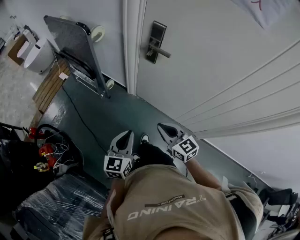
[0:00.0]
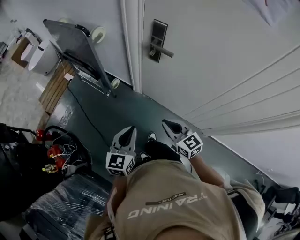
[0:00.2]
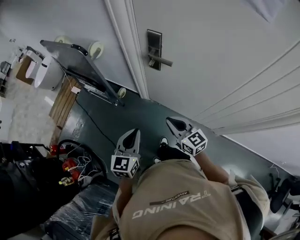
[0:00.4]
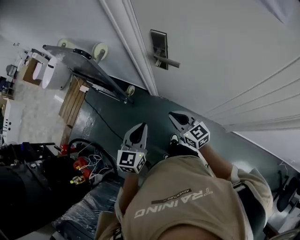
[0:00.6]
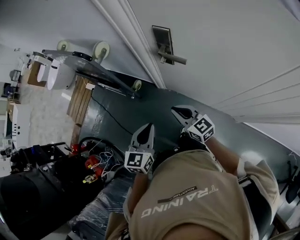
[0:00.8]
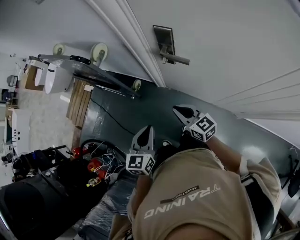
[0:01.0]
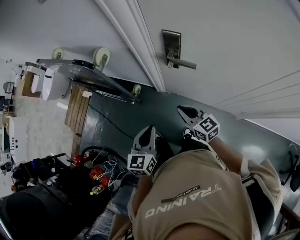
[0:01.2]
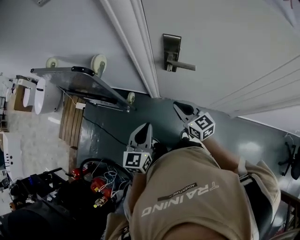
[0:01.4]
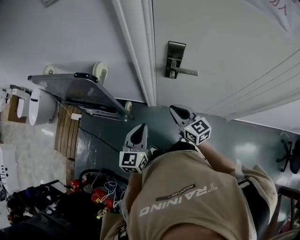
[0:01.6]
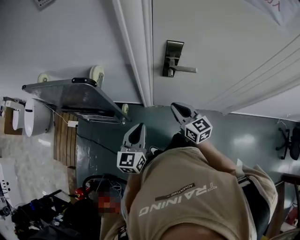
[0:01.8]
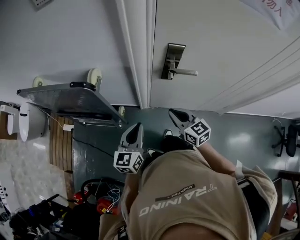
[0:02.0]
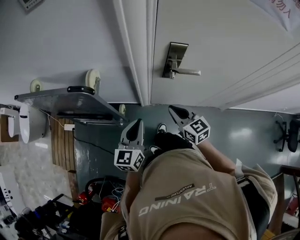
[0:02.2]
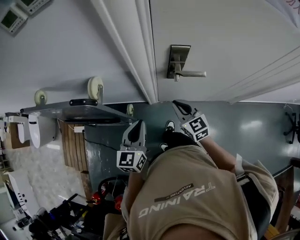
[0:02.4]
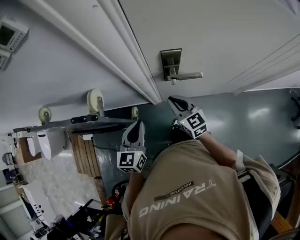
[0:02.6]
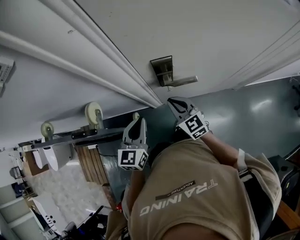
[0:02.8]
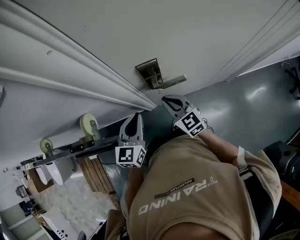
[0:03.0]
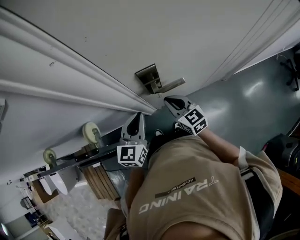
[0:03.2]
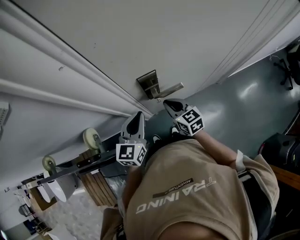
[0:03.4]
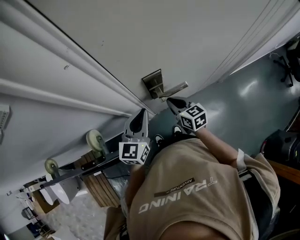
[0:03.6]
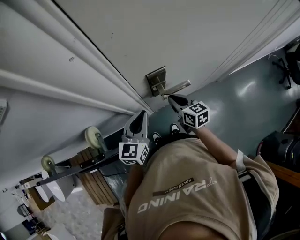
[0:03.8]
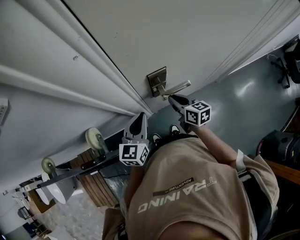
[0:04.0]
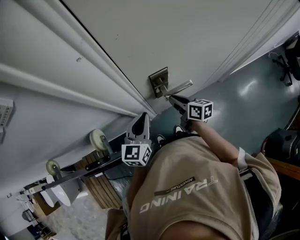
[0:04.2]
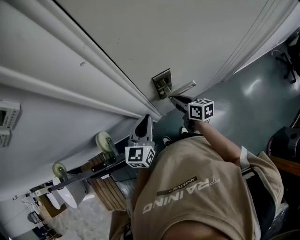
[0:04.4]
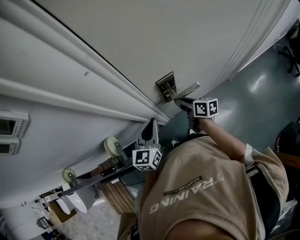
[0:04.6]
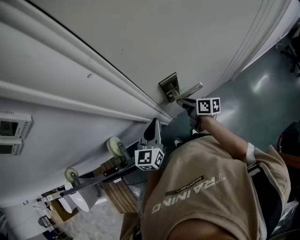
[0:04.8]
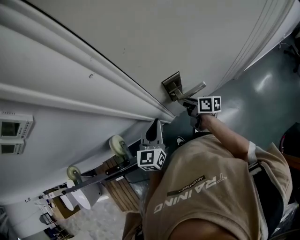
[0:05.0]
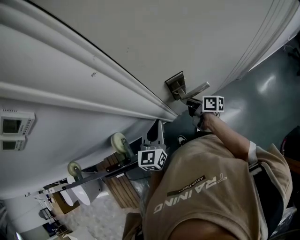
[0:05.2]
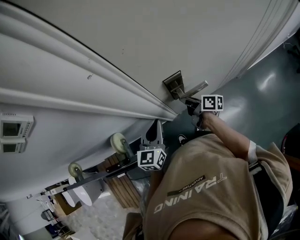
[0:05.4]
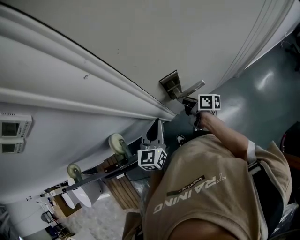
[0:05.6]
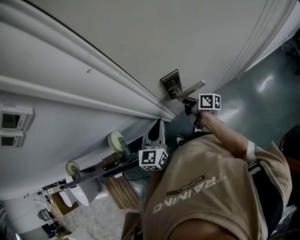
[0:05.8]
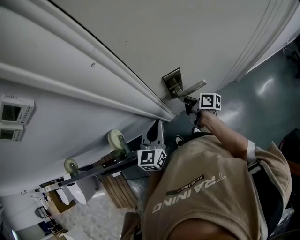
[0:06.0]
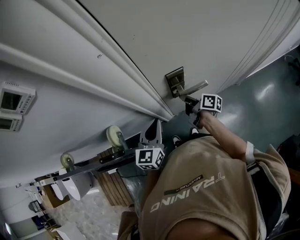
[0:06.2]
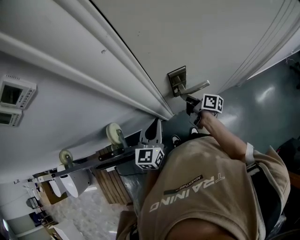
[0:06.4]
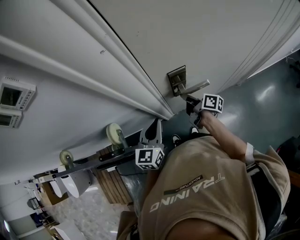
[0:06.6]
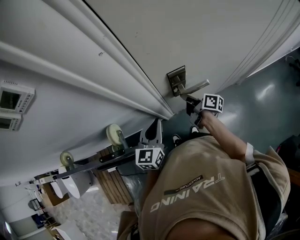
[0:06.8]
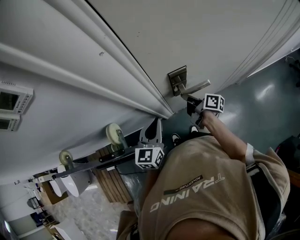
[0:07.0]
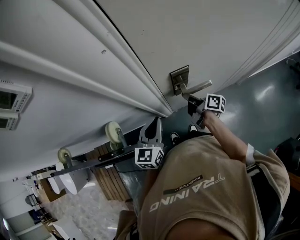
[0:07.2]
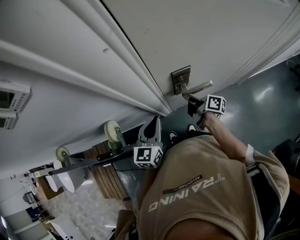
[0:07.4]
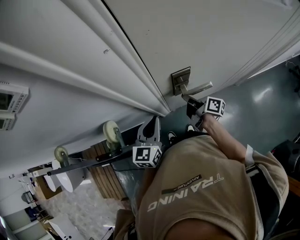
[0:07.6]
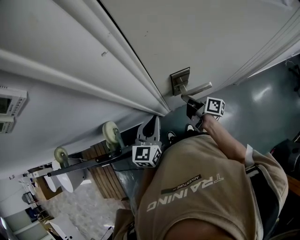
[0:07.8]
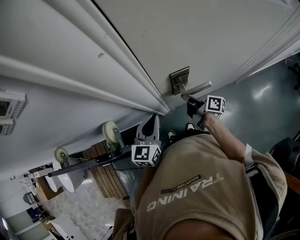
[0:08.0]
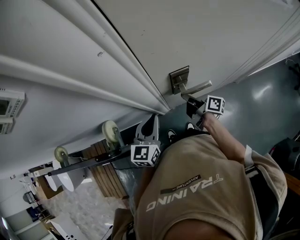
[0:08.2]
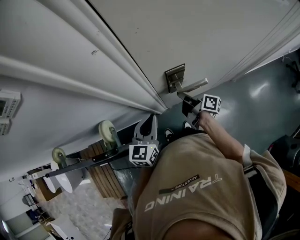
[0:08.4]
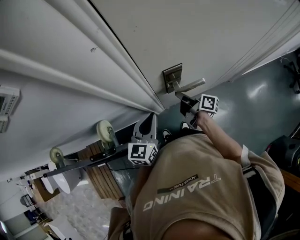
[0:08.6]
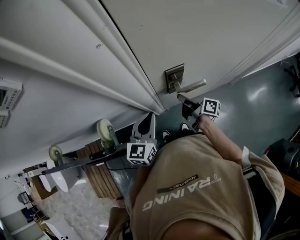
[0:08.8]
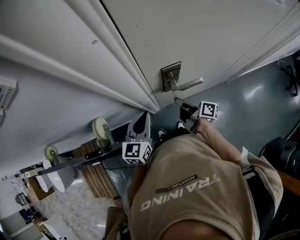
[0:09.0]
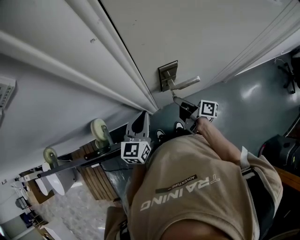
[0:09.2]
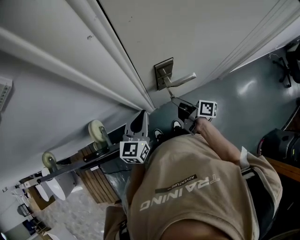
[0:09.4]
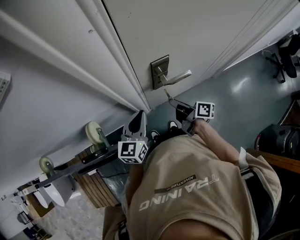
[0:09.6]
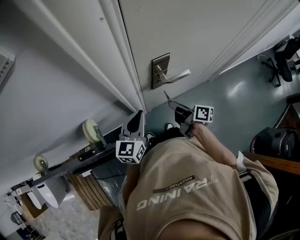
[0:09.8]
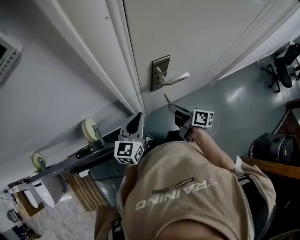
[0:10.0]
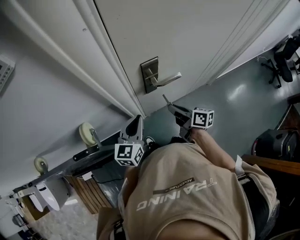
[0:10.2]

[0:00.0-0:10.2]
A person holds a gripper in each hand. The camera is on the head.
0:00.0 to 0:01.4: The two grippers go approximately 25 cm forward.
0:01.4 to 0:03.0: The left gripper changes place by some 25 cm, and turns by about 30 degrees. The right gripper shifts by some 15 cm, and rotates approximately 30 degrees.
0:03.0 to 0:04.4: The right gripper heads forward, covering approximately 5 cm, and twists roughly 50 degrees clockwise, seen from behind.
0:04.4 to 0:05.8: The right gripper changes its angle by some 30 degrees.
0:05.8 to 0:08.8: The grippers move only a little.
0:08.8 to 0:10.2: The right gripper goes roughly 10 cm backward, and changes its angle by roughly 20 degrees.

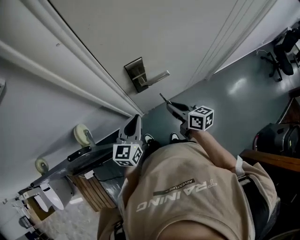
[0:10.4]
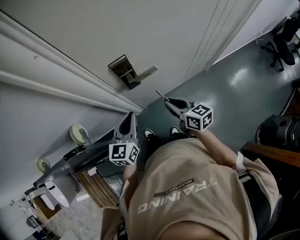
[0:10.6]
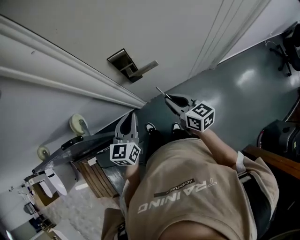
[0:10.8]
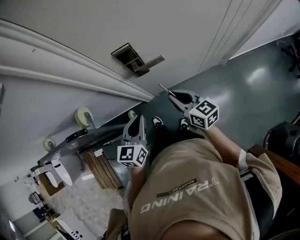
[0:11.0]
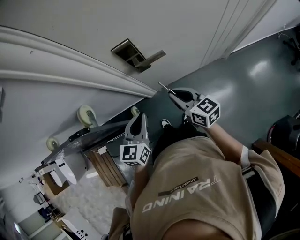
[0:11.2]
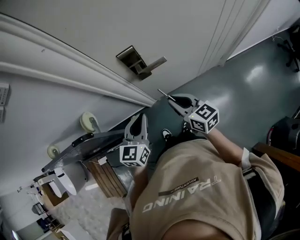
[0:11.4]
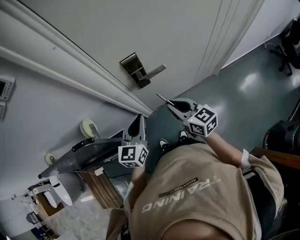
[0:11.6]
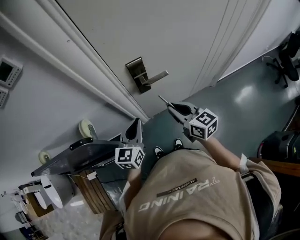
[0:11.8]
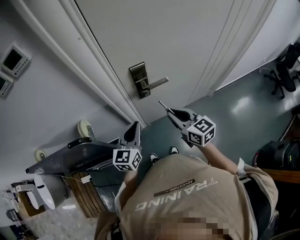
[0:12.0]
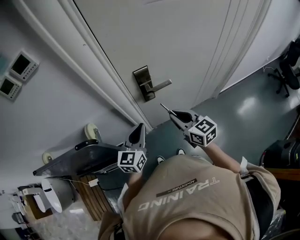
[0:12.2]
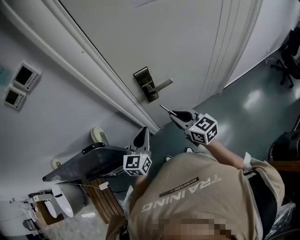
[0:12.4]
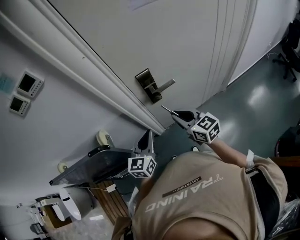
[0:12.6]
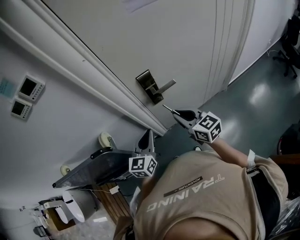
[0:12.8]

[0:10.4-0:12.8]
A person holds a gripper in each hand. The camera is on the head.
0:10.4 to 0:11.6: The left gripper changes place by some 5 cm; the right gripper moves upward, roughly 5 cm, and changes its angle by some 20 degrees.
0:11.6 to 0:12.8: The grippers stay close to where they were, moving slightly.

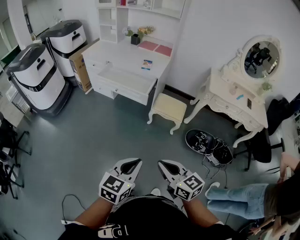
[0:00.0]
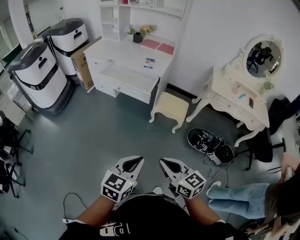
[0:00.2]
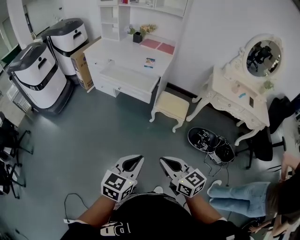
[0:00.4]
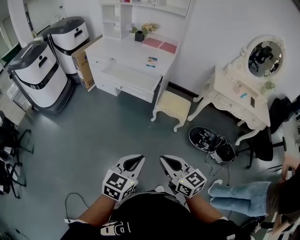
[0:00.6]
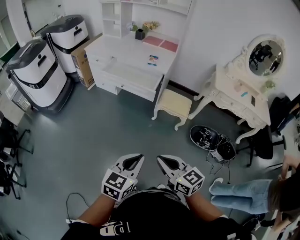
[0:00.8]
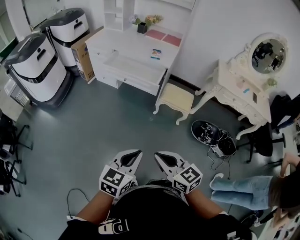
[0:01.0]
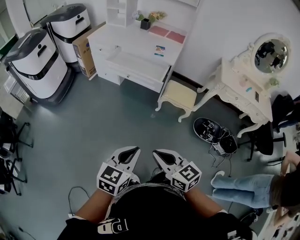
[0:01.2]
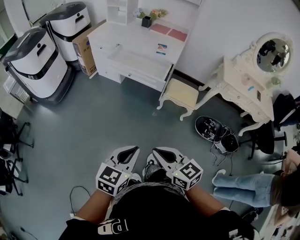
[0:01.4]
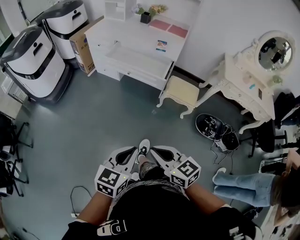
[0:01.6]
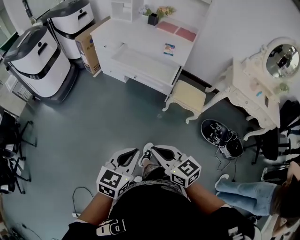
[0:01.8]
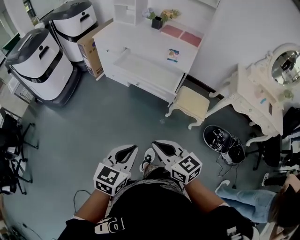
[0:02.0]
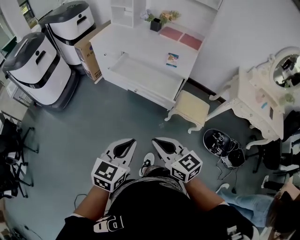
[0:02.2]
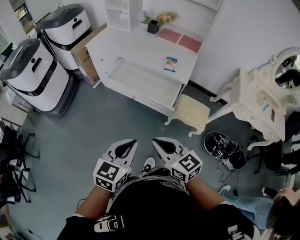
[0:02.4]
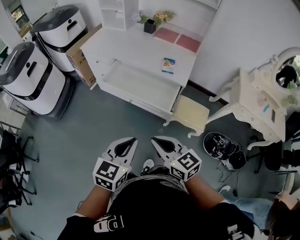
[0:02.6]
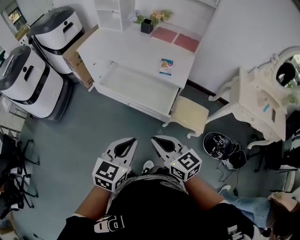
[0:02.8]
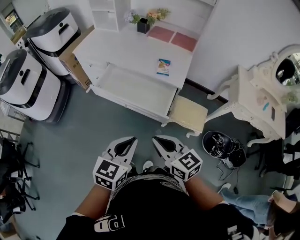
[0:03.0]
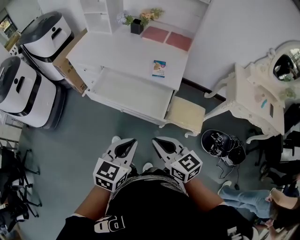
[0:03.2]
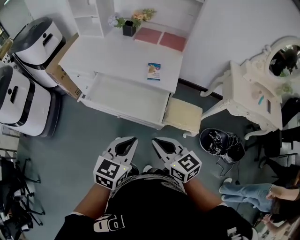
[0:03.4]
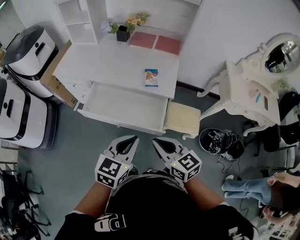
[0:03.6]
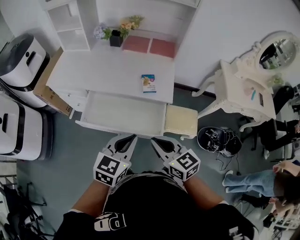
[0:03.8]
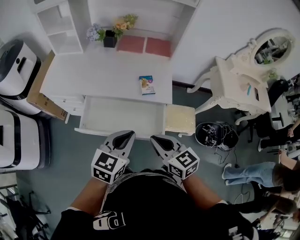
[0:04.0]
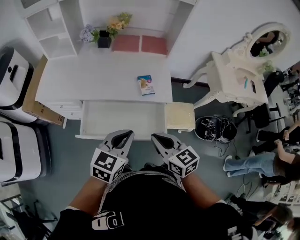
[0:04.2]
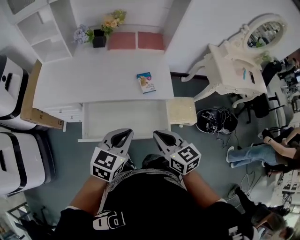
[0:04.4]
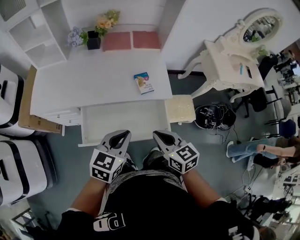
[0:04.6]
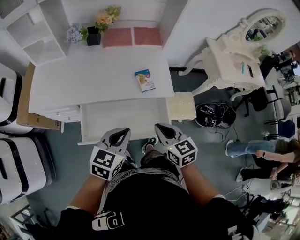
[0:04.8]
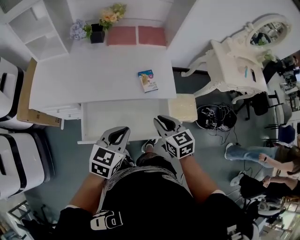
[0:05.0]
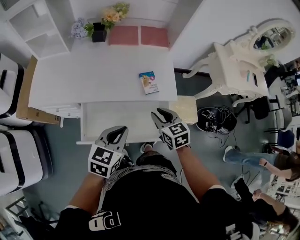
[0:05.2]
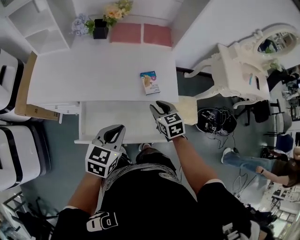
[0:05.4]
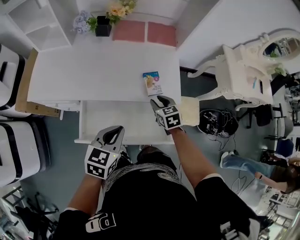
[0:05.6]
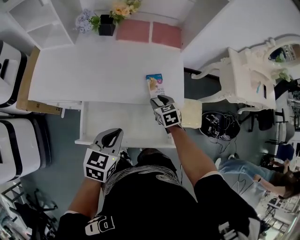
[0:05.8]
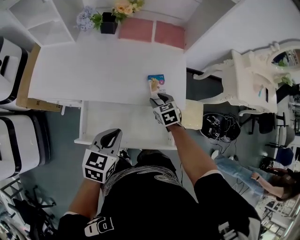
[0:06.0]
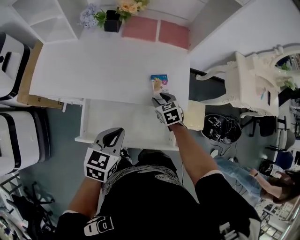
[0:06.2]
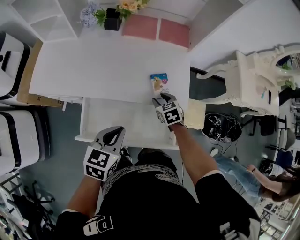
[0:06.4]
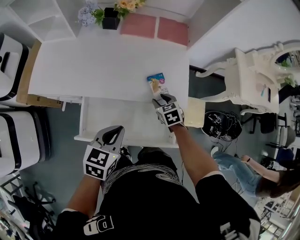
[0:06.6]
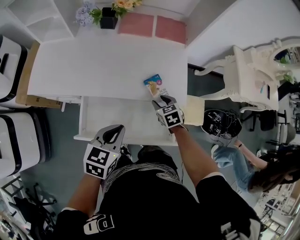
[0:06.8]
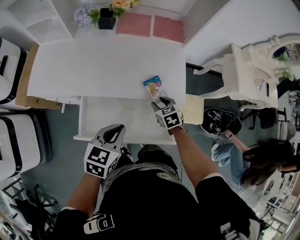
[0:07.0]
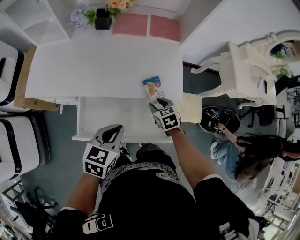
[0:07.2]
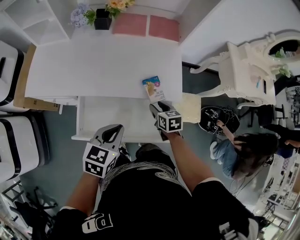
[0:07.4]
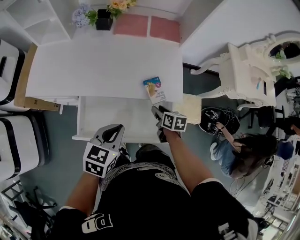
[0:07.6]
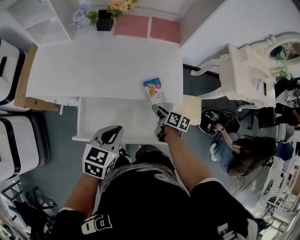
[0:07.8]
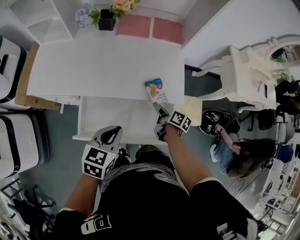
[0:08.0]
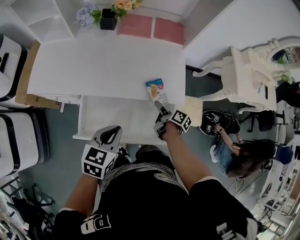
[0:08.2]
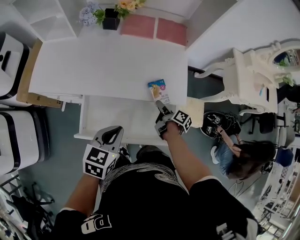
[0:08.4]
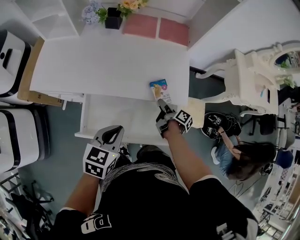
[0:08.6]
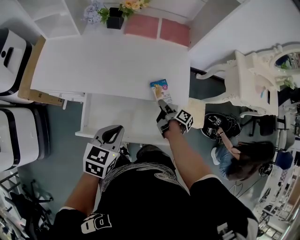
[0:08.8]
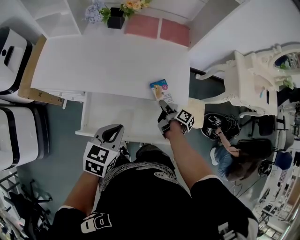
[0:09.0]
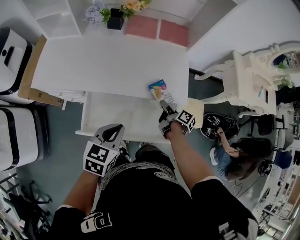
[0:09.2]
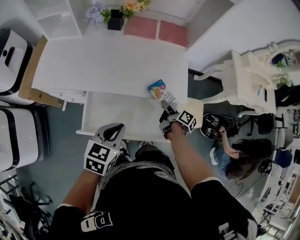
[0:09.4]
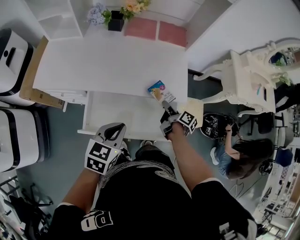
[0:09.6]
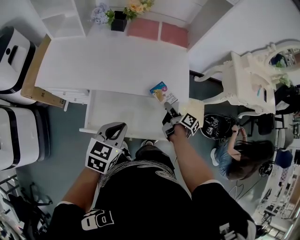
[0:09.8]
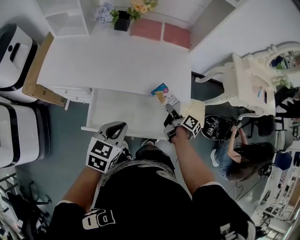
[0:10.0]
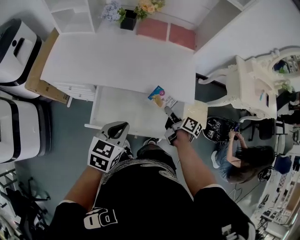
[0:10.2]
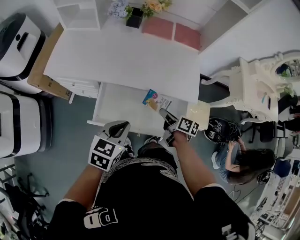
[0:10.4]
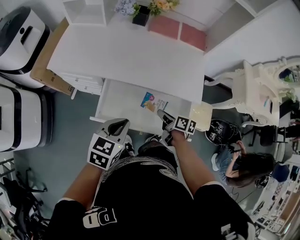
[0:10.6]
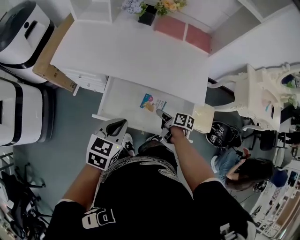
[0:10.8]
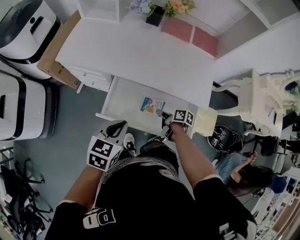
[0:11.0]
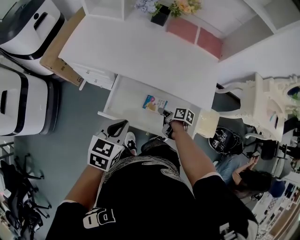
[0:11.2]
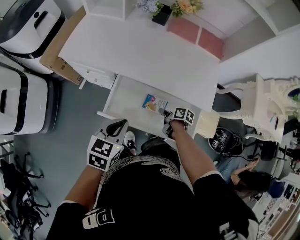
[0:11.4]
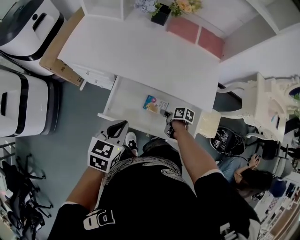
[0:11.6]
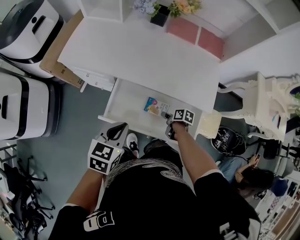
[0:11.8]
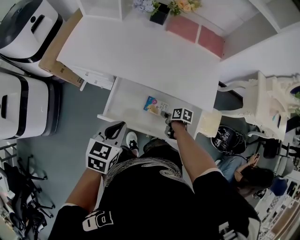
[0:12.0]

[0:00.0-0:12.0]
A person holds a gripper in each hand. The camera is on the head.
0:00.0 to 0:01.6: Both grippers travel together to the left and forward, approximately 15 cm.
0:01.6 to 0:03.0: Both grippers travel together forward, approximately 35 cm.
0:03.0 to 0:04.4: The right gripper moves approximately 25 cm, and changes its angle by approximately 30 degrees, while the left gripper moves about 30 cm, and changes its angle by some 30 degrees.
0:04.4 to 0:06.0: The right gripper travels forward and downward by about 30 cm, turns by about 30 degrees, and opens. Meanwhile the left gripper shifts some 10 cm forward, downward and to the left.
0:06.0 to 0:07.6: The right gripper heads backward, covering some 10 cm, and rotates around the line of its fingers by some 40 degrees, clockwise from behind.
0:07.6 to 0:09.0: The right gripper twists roughly 40 degrees clockwise, seen from behind.
0:09.0 to 0:10.4: The left gripper ends up some 5 cm from where it was. Meanwhile the right gripper heads backward and to the left, covering roughly 10 cm, and changes its angle by some 30 degrees.
0:10.4 to 0:12.0: The right gripper is displaced downward by about 15 cm, and turns by roughly 30 degrees. Meanwhile the left gripper shifts some 5 cm to the left.
